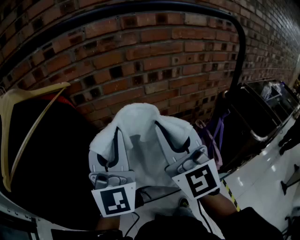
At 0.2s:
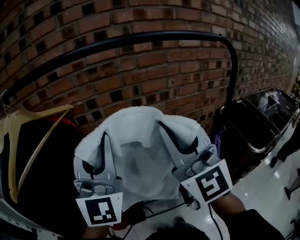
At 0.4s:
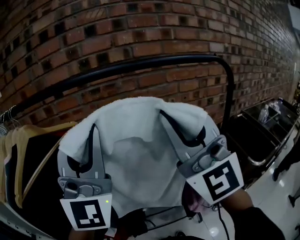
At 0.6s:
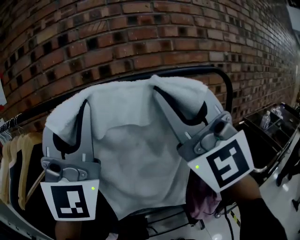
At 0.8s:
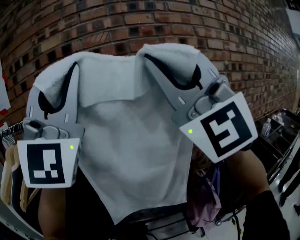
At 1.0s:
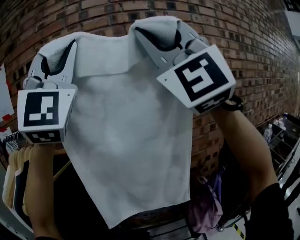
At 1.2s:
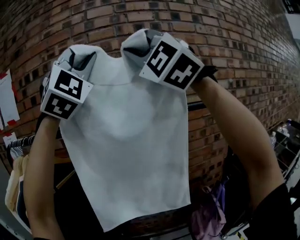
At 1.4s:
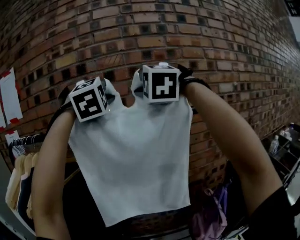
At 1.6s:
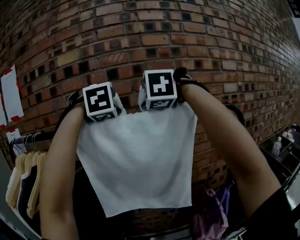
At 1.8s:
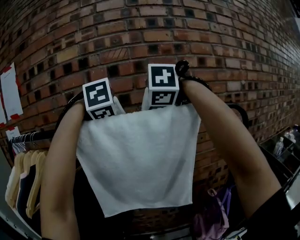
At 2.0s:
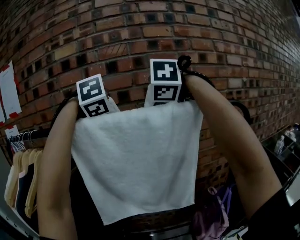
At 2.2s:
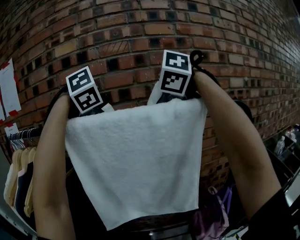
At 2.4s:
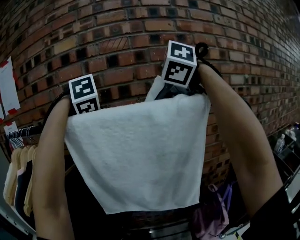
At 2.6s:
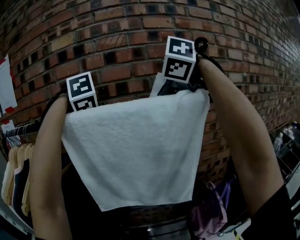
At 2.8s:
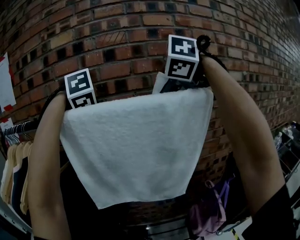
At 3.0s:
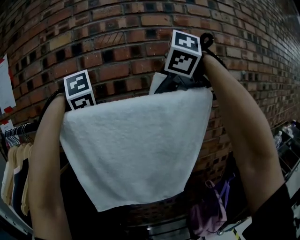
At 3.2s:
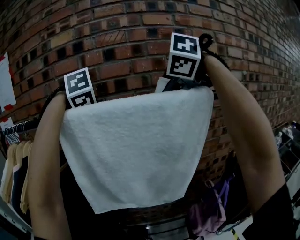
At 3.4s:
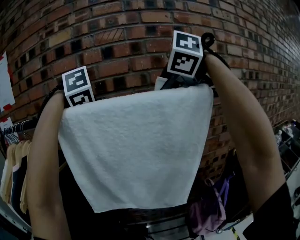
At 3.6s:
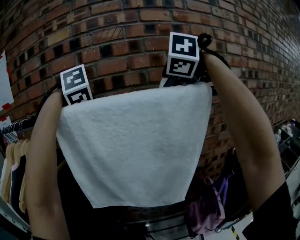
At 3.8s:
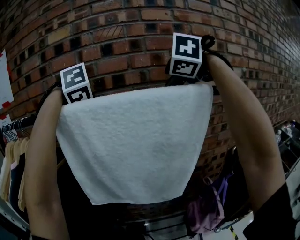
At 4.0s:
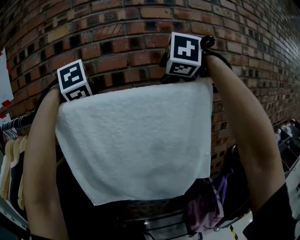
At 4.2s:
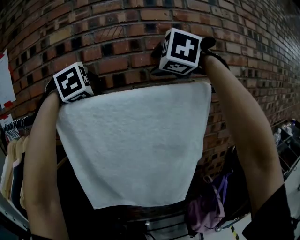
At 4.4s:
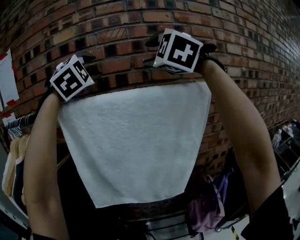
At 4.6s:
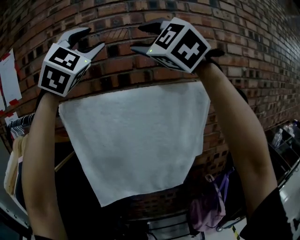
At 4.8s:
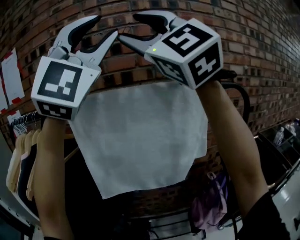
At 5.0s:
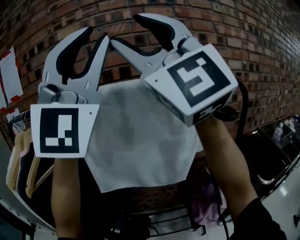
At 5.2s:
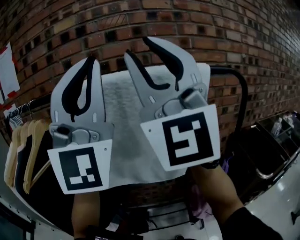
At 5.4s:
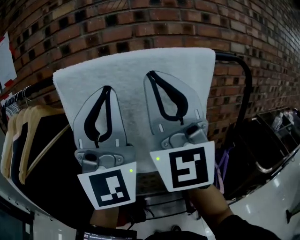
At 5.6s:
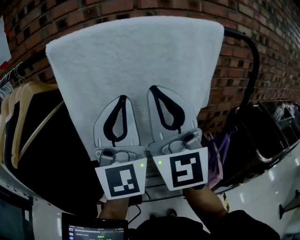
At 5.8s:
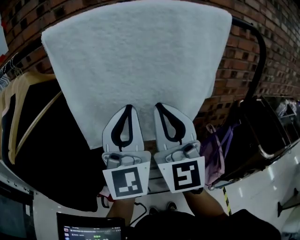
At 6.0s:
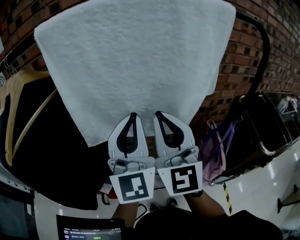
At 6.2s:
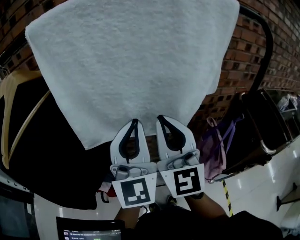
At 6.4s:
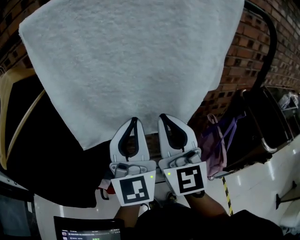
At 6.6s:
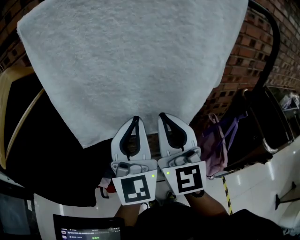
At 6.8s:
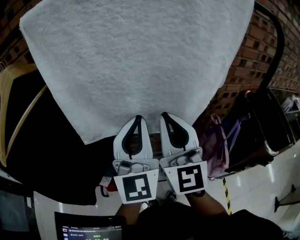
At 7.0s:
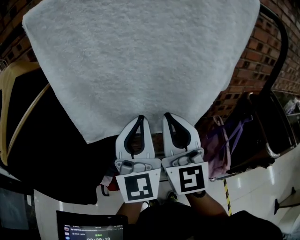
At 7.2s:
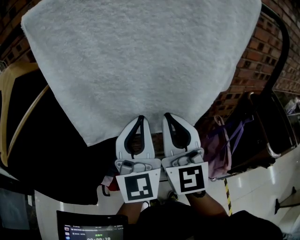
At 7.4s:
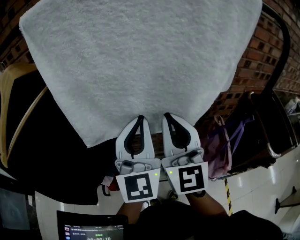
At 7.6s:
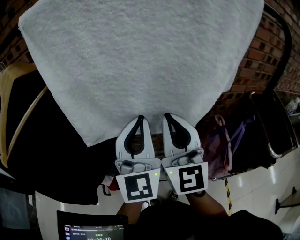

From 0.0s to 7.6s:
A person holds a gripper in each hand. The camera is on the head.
From 0.0s to 1.6s: Both grippers move upward and forward, some 30 cm. The right gripper tips its fingers downward by about 60 degrees. Meanwhile the left gripper tilts its fingers some 60 degrees downward.
From 1.6s to 3.0s: The left gripper is displaced to the left and downward by roughly 10 cm, turns by some 30 degrees, and opens. The right gripper shifts approximately 5 cm to the right, changes its angle by roughly 30 degrees, and opens.
From 3.0s to 4.6s: The right gripper moves upward and to the left, approximately 15 cm, and tilts its fingers approximately 60 degrees upward; the left gripper moves upward, about 25 cm, and points its fingers about 80 degrees further upward.
From 4.6s to 6.0s: Both grippers move downward, approximately 40 cm. The left gripper twists some 50 degrees counterclockwise, seen from behind, and closes its fingers. Meanwhile the right gripper rolls clockwise, seen from behind, by some 50 degrees, and closes.
From 6.0s to 7.6s: The grippers both shift downward by approximately 5 cm.

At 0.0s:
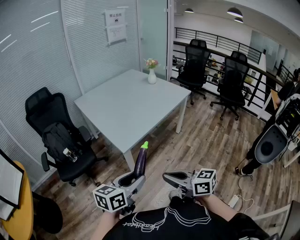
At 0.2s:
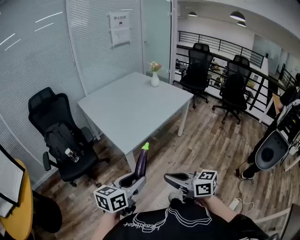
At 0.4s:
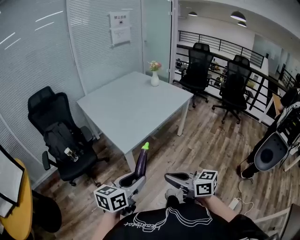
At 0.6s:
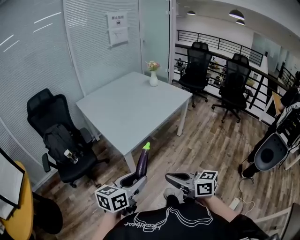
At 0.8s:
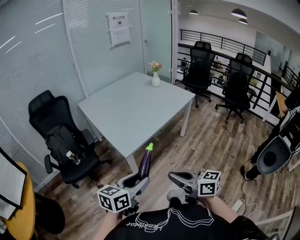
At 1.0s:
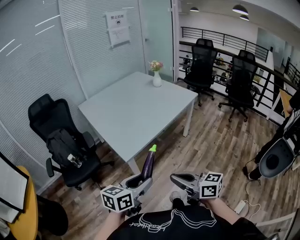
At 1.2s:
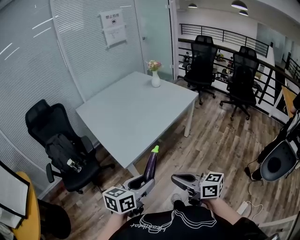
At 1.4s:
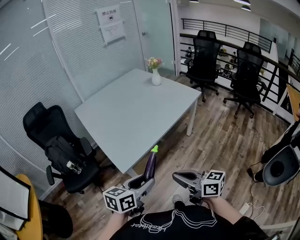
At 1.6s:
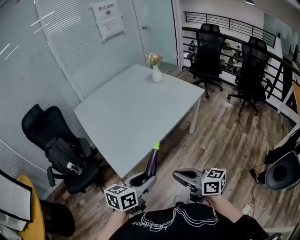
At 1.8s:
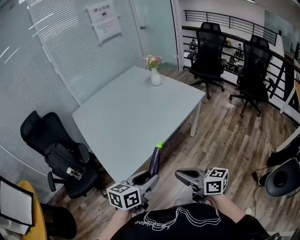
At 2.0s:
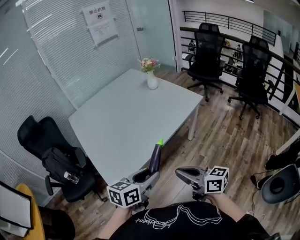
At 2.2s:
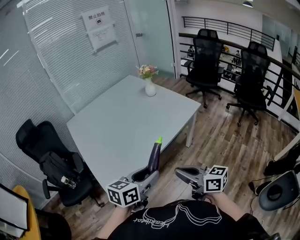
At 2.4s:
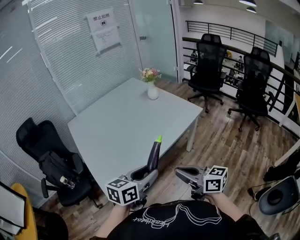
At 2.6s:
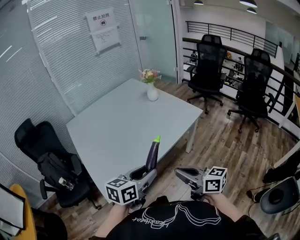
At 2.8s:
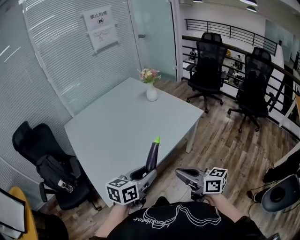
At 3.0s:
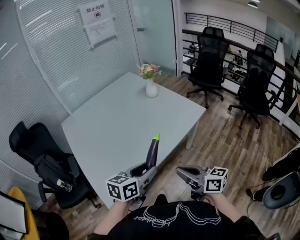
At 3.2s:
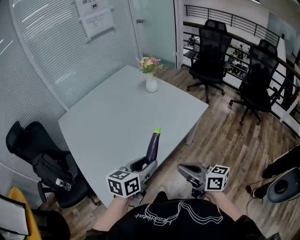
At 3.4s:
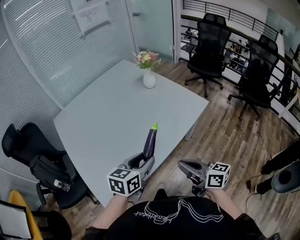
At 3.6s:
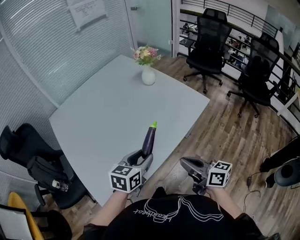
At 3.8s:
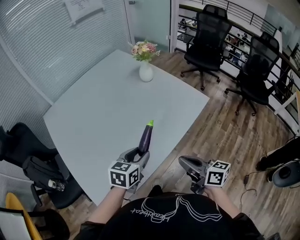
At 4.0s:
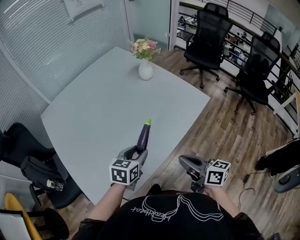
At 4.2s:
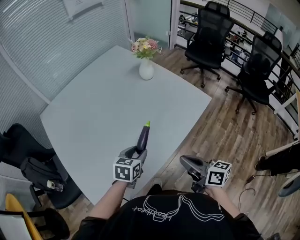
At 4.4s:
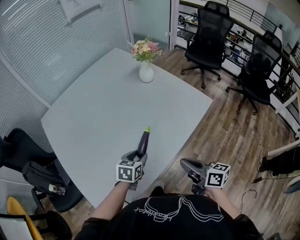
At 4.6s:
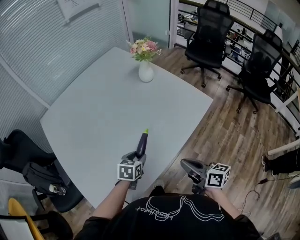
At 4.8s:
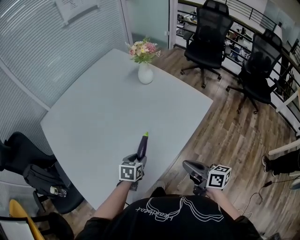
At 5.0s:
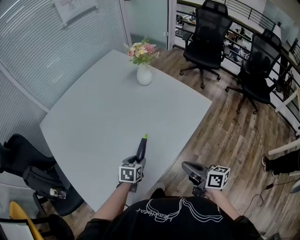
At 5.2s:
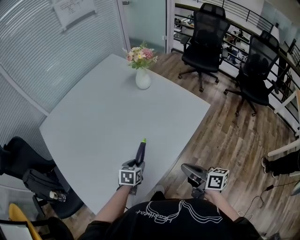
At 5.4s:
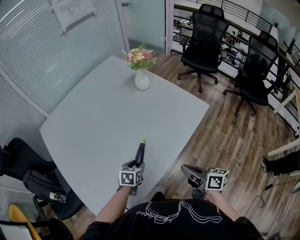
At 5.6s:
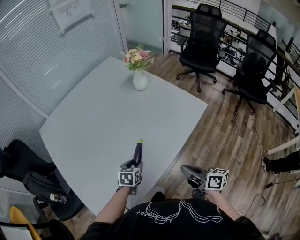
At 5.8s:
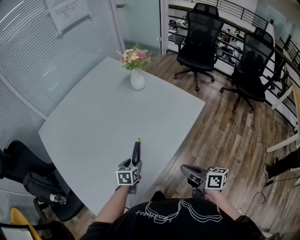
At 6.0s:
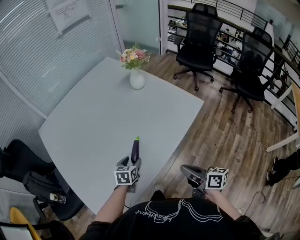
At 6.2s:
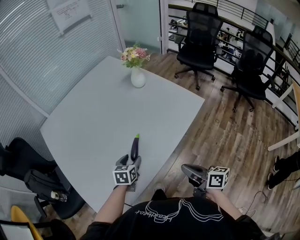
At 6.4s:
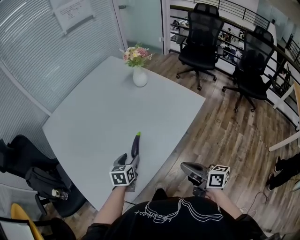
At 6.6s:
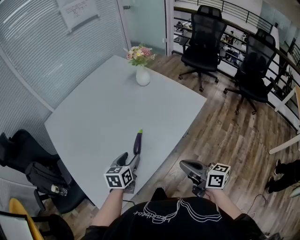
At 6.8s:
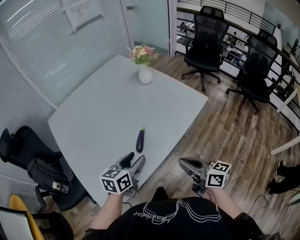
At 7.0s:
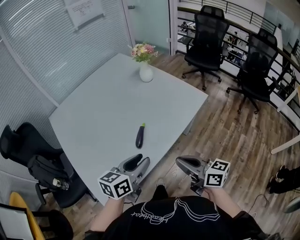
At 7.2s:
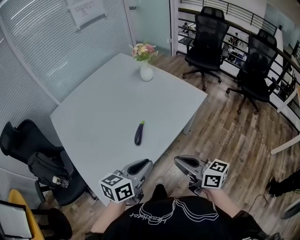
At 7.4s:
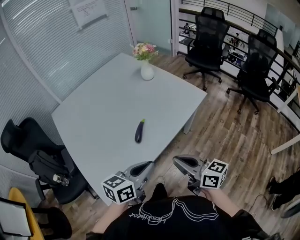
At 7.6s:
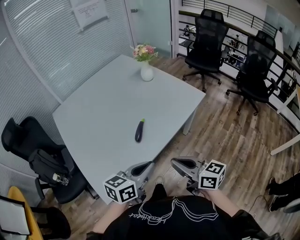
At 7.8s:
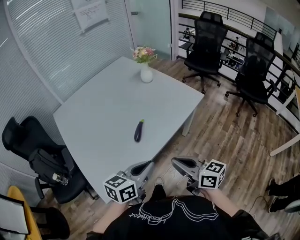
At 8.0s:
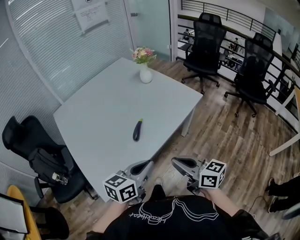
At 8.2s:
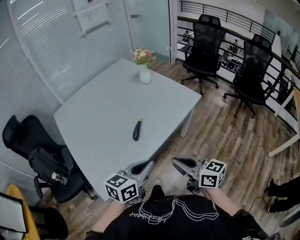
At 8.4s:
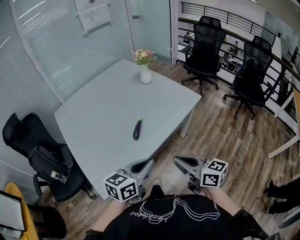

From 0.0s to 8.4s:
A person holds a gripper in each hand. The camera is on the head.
From 0.0s to 1.4s: The two grippers go some 20 cm forward and to the right.
From 1.4s to 2.8s: The two grippers go approximately 30 cm forward and to the right.
From 2.8s to 4.2s: Both grippers travel together forward and downward, roughly 25 cm. The left gripper swivels roughly 20 degrees.
From 4.2s to 5.6s: The left gripper is displaced downward by some 10 cm; the right gripper ends up approximately 5 cm from where it was.
From 5.6s to 7.0s: The right gripper shifts some 10 cm upward and backward, and turns by about 20 degrees; the left gripper heads upward and backward, covering some 25 cm, and angles its fingers upward, by roughly 30 degrees.
From 7.0s to 8.4s: The grippers both shift backward by approximately 10 cm. The left gripper closes its fingers.

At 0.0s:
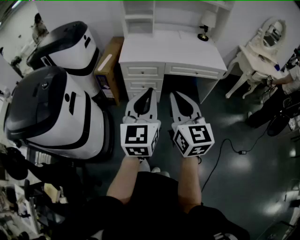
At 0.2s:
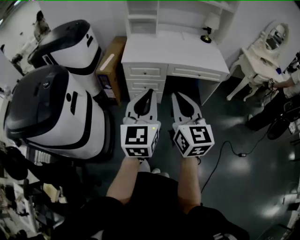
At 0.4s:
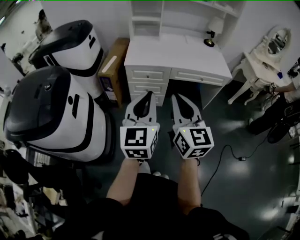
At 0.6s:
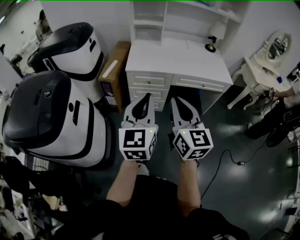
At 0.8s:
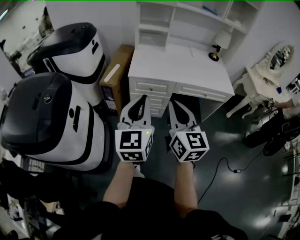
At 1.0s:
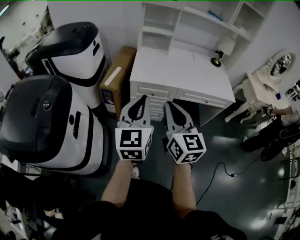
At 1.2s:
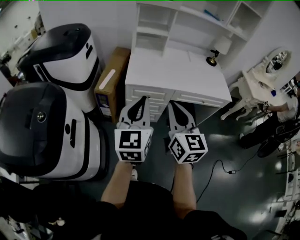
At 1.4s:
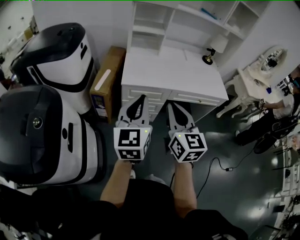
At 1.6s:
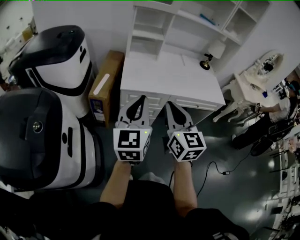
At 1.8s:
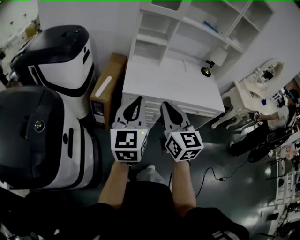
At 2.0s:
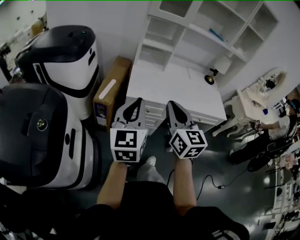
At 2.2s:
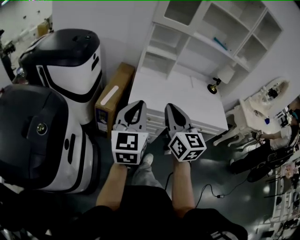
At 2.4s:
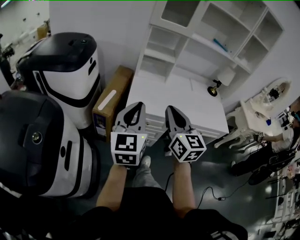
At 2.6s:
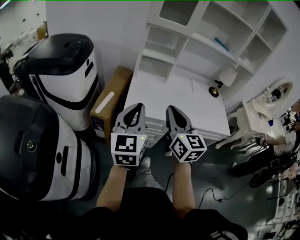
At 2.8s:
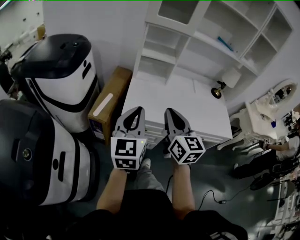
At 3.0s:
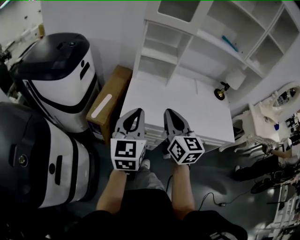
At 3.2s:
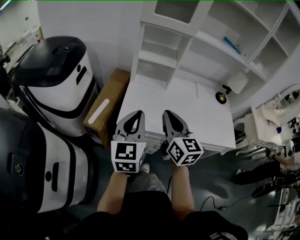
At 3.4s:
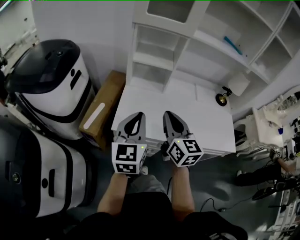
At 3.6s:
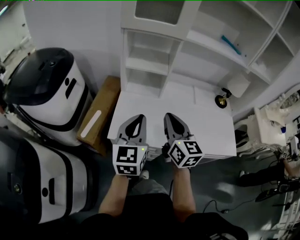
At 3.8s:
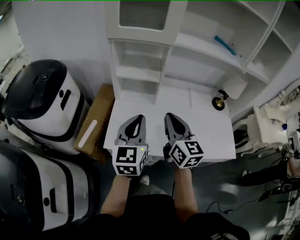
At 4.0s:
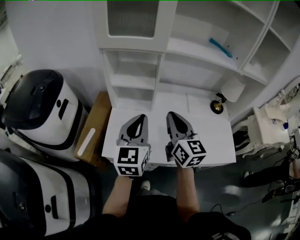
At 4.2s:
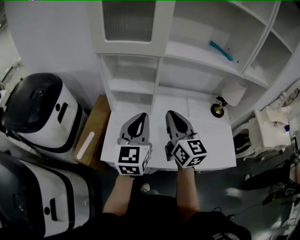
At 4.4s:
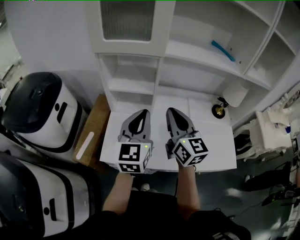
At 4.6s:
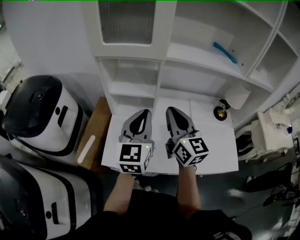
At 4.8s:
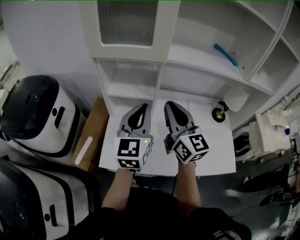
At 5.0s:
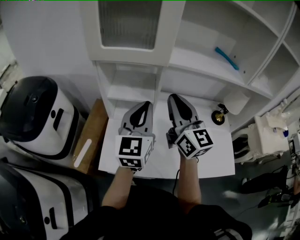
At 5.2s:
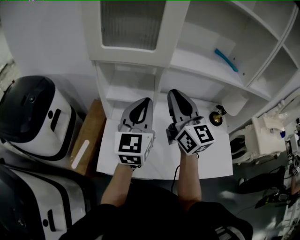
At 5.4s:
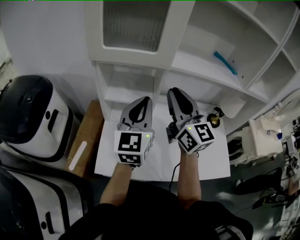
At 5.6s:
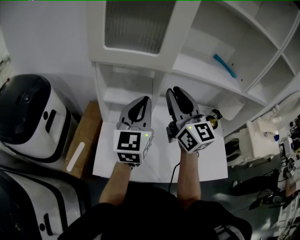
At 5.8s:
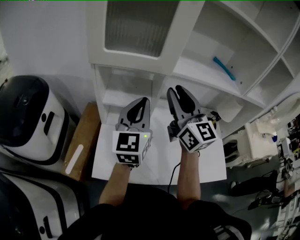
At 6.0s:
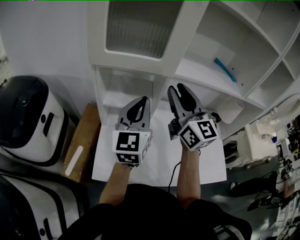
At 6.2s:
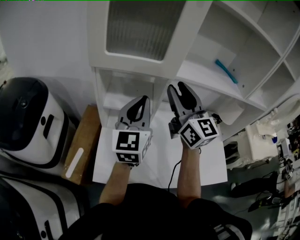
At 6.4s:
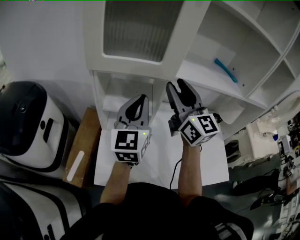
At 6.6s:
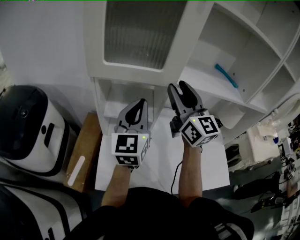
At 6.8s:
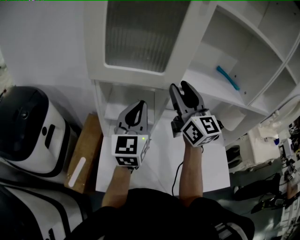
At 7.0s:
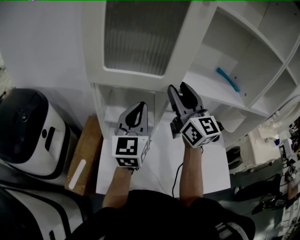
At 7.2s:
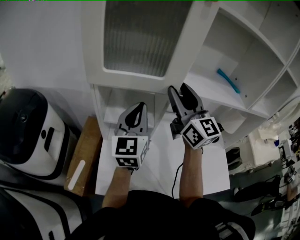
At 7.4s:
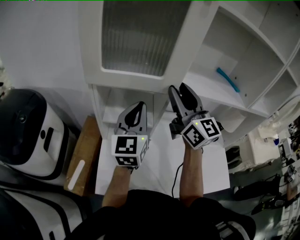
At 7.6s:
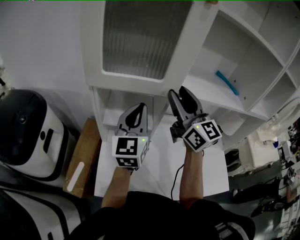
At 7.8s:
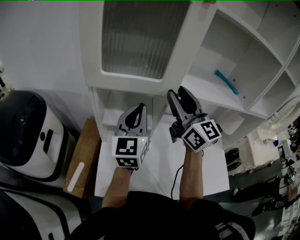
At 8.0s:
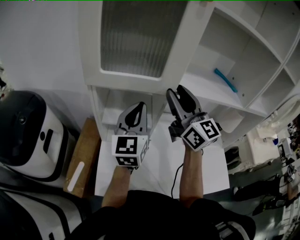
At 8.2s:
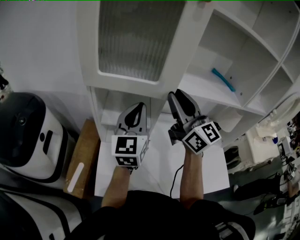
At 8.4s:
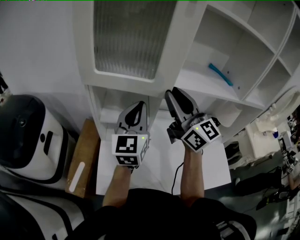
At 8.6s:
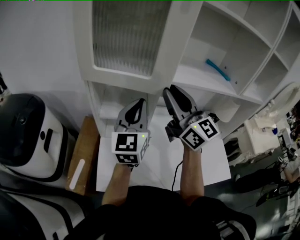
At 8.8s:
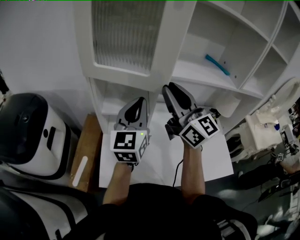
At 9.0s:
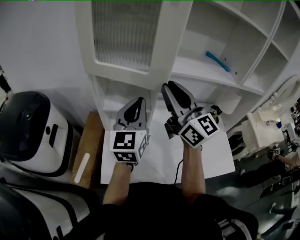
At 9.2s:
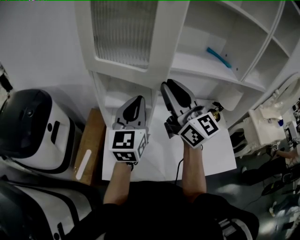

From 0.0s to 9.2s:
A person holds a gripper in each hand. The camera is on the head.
From 0.0s to 1.6s: The two grippers go about 25 cm forward and to the left.
From 1.6s to 3.0s: Both grippers travel together forward, roughly 20 cm.
From 3.0s to 4.6s: The two grippers go roughly 30 cm forward and to the right.
From 4.6s to 6.2s: The left gripper goes approximately 10 cm forward. Meanwhile the right gripper heads forward and upward, covering approximately 15 cm, and opens up.
From 6.2s to 7.6s: The left gripper travels forward by some 5 cm.
From 7.6s to 9.2s: Both grippers move backward, roughly 10 cm.
